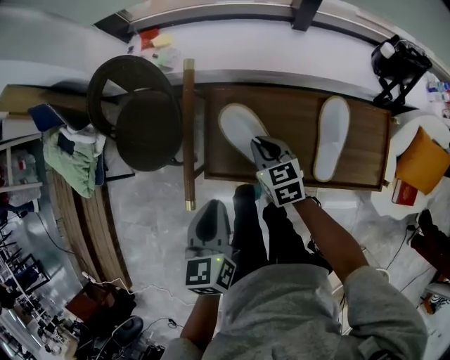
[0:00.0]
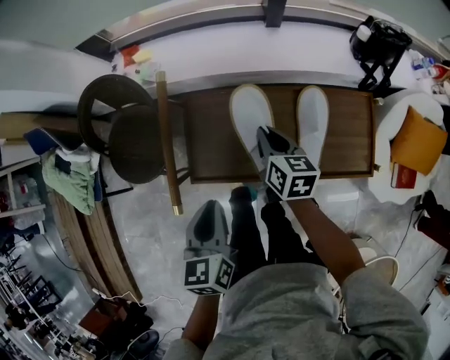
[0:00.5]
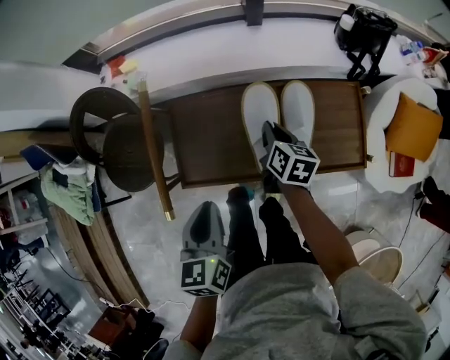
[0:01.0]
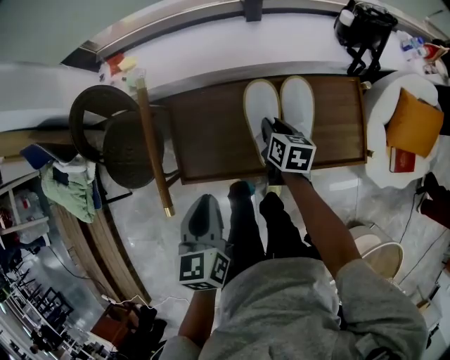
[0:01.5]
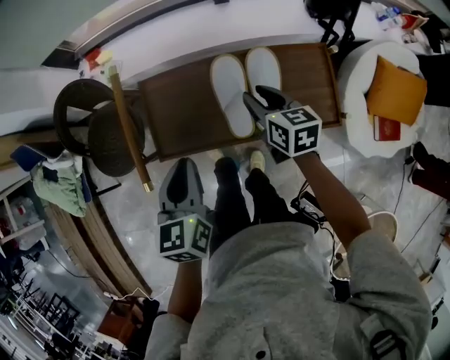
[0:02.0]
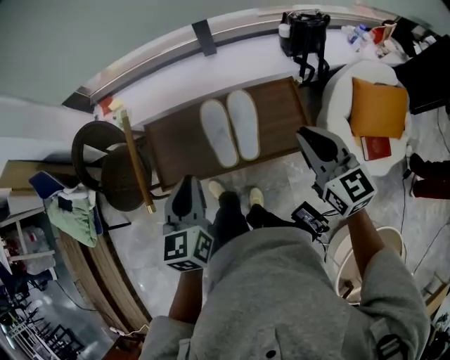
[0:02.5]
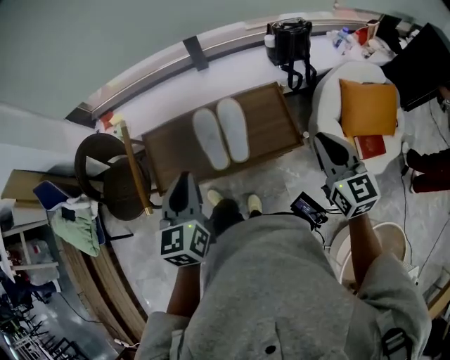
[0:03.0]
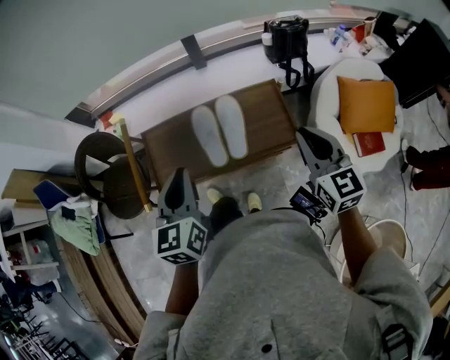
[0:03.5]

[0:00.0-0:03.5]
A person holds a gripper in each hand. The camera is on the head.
0:00.0 to 0:02.0: The right gripper heads to the right, covering approximately 20 cm, rotates roughly 20 degrees, and opens up. Meanwhile the left gripper moves to the right, about 10 cm.
0:02.0 to 0:03.5: The left gripper is displaced upward and to the right by some 15 cm. The right gripper is displaced upward, to the right and backward by roughly 35 cm, rotates some 30 degrees, and closes its fingers.

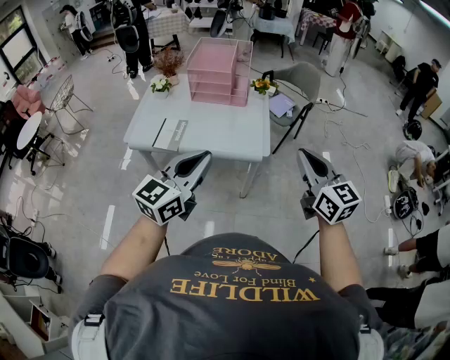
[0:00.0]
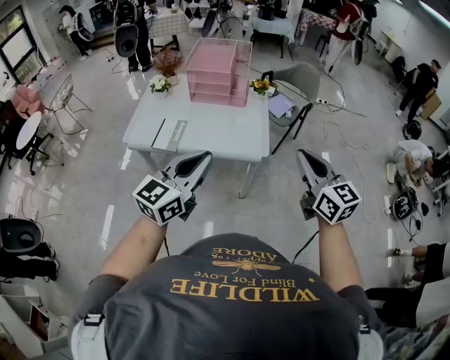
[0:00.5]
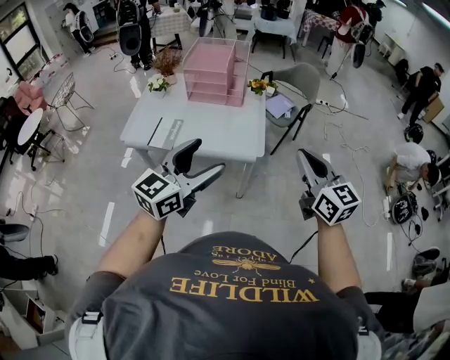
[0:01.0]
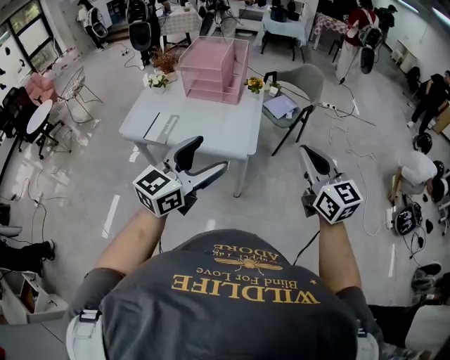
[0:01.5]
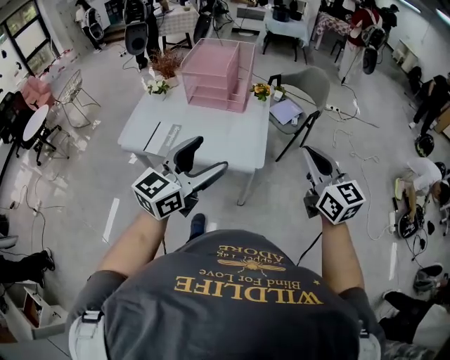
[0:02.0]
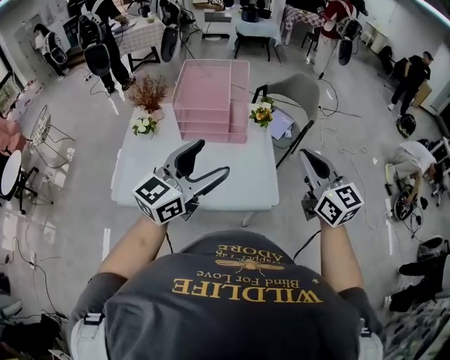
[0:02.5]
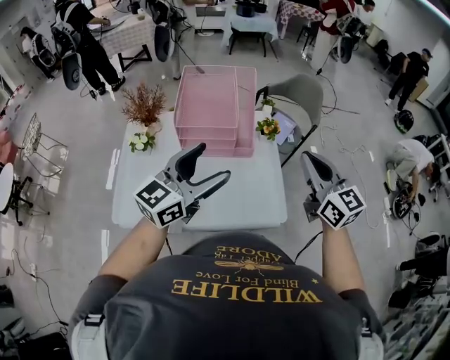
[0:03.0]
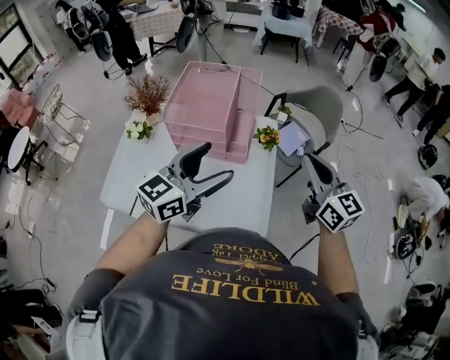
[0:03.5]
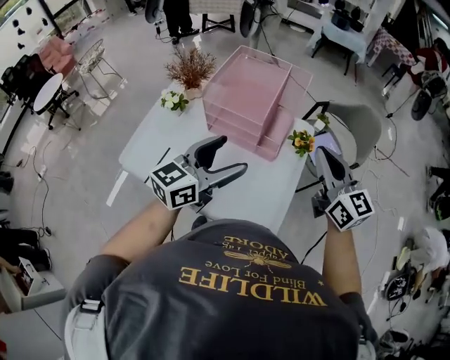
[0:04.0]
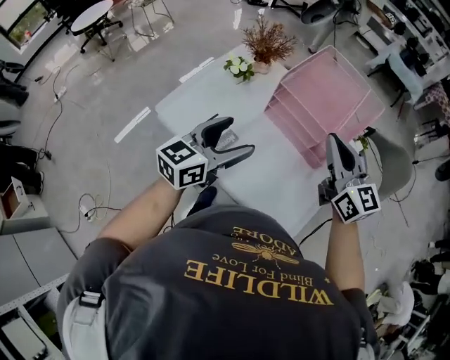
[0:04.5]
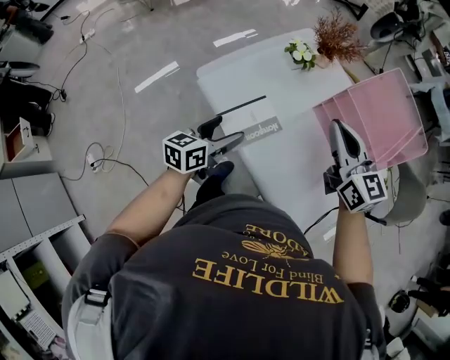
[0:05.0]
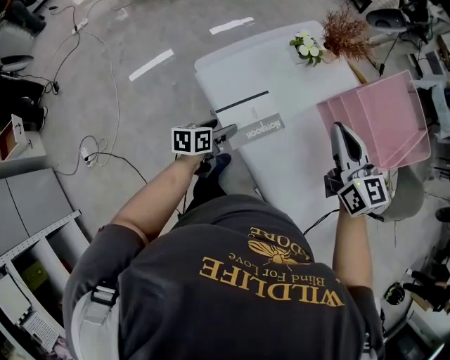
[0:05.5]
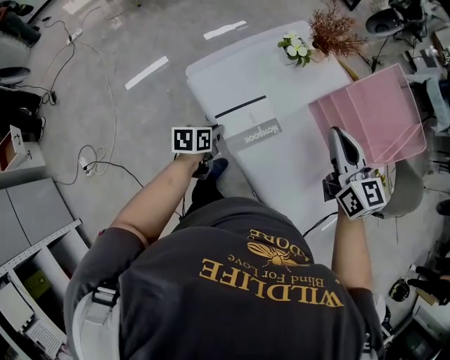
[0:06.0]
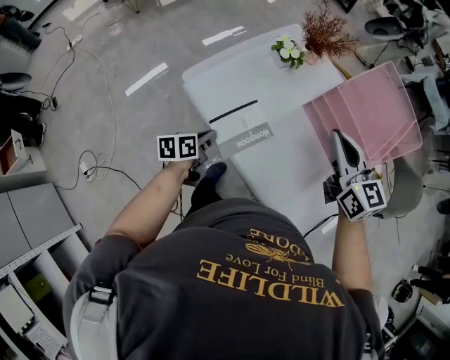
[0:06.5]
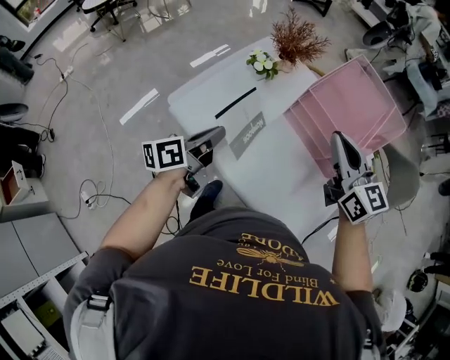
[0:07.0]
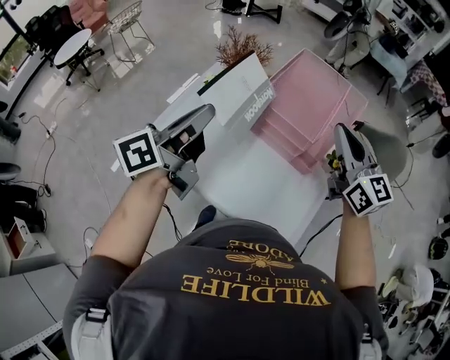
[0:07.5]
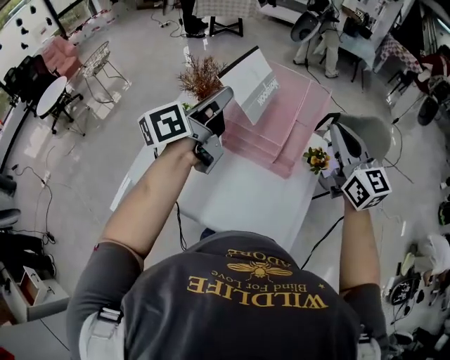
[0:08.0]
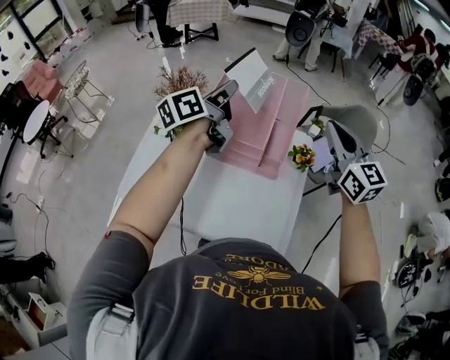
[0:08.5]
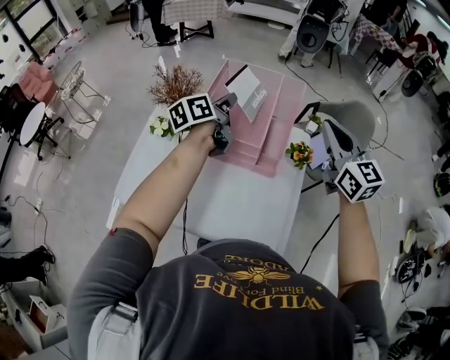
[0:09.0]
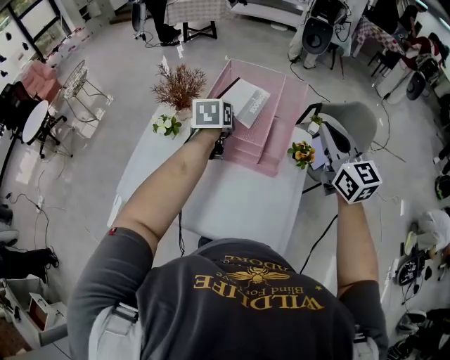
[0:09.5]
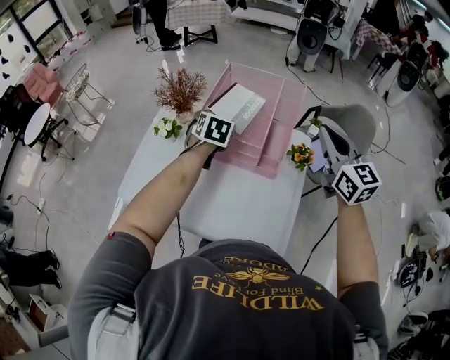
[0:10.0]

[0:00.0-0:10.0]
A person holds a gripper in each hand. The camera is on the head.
0:00.0 to 0:02.0: The two grippers go some 10 cm forward and to the right. The left gripper opens its fingers.
0:02.0 to 0:04.0: The left gripper goes about 30 cm forward. Meanwhile the right gripper is displaced forward and to the left by approximately 40 cm.
0:04.0 to 0:06.0: The right gripper ends up some 35 cm from where it was, and swivels roughly 30 degrees. The left gripper heads downward, covering about 35 cm, points its fingers some 40 degrees further downward, and closes its fingers.
0:06.0 to 0:08.0: The right gripper changes place by about 30 cm, and rotates roughly 40 degrees; the left gripper goes roughly 40 cm upward, and points its fingers some 50 degrees further upward.
0:08.0 to 0:10.0: The right gripper is displaced to the right by approximately 5 cm, while the left gripper is displaced downward and forward by some 20 cm, points its fingers roughly 50 degrees further downward, and opens up.

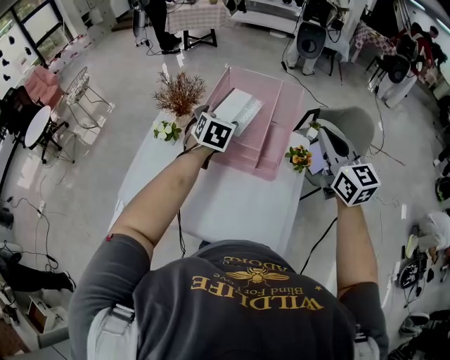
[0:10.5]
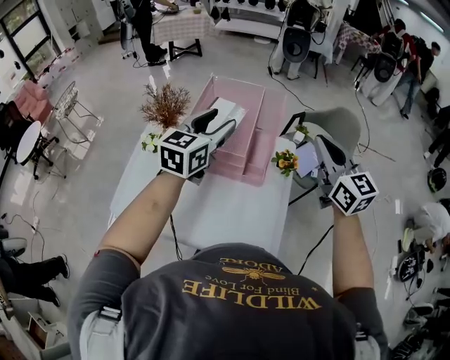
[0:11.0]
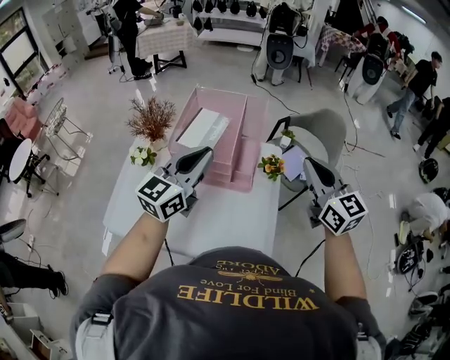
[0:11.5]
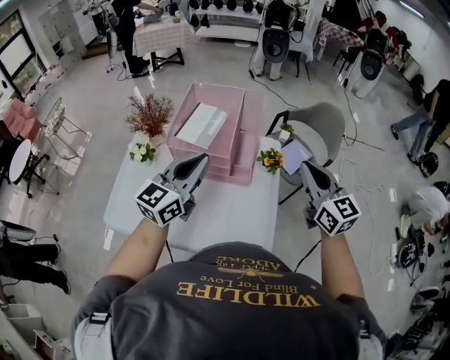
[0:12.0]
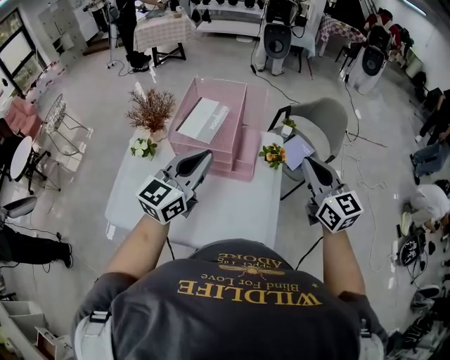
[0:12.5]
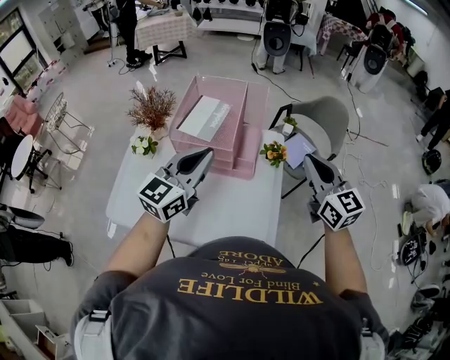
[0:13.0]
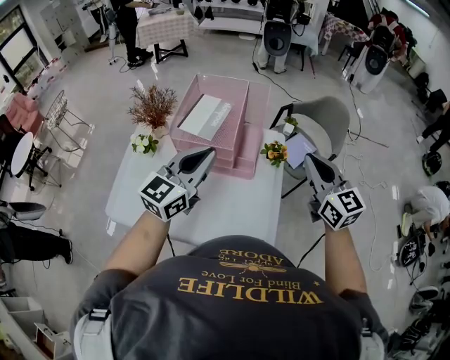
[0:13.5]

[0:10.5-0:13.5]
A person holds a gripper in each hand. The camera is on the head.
0:10.5 to 0:12.0: The right gripper moves backward and to the right, approximately 10 cm; the left gripper heads backward, upward and to the right, covering about 20 cm, tilts its fingers approximately 40 degrees upward, and closes its fingers.
0:12.0 to 0:13.5: Both grippers stay put.

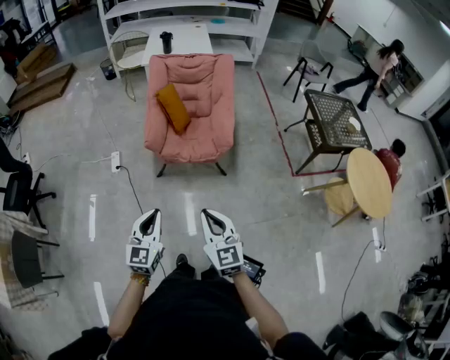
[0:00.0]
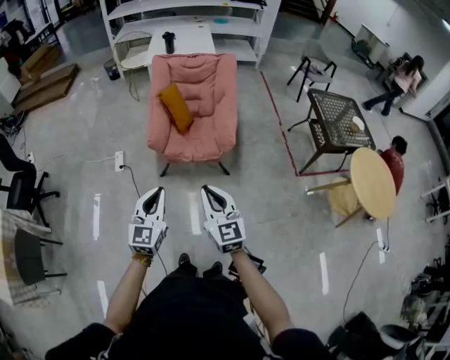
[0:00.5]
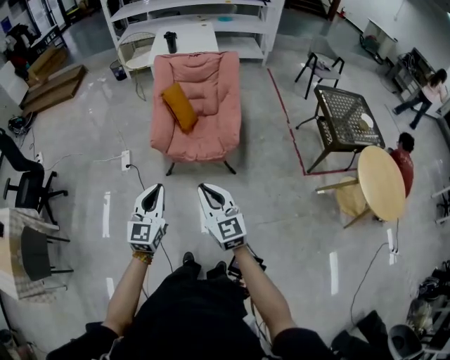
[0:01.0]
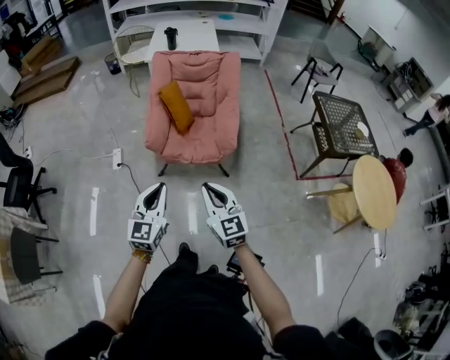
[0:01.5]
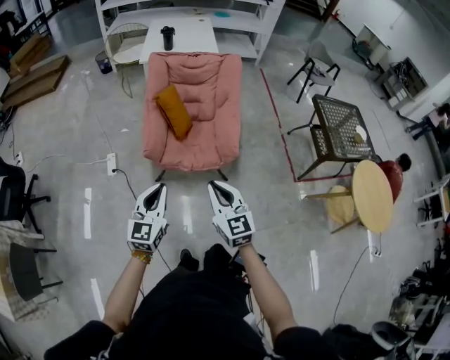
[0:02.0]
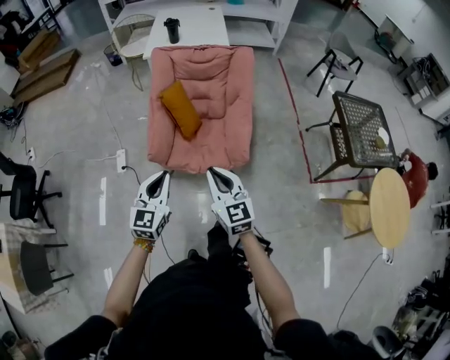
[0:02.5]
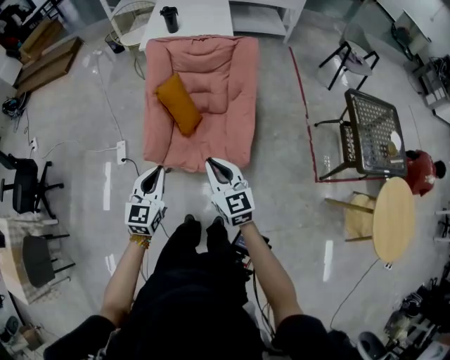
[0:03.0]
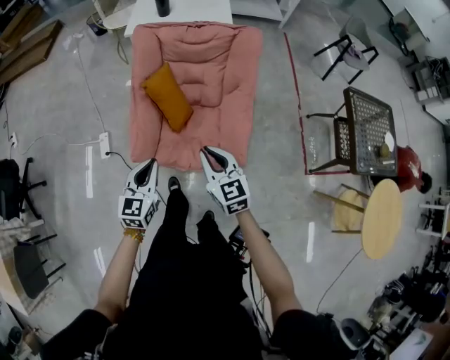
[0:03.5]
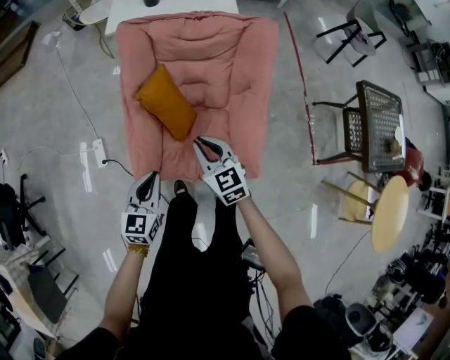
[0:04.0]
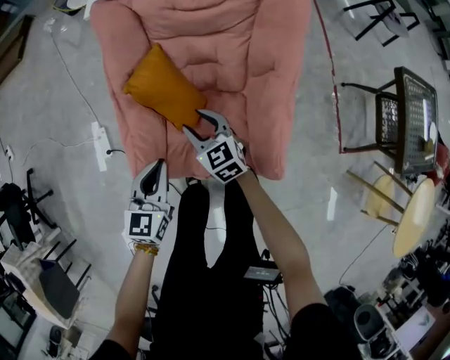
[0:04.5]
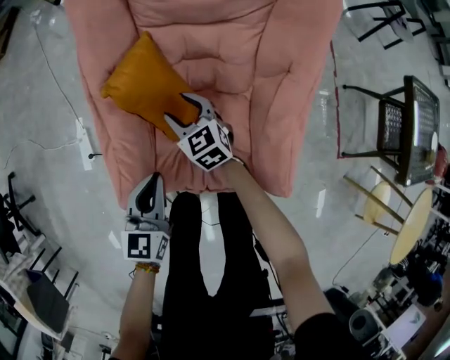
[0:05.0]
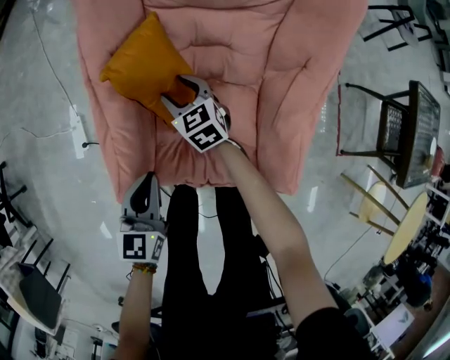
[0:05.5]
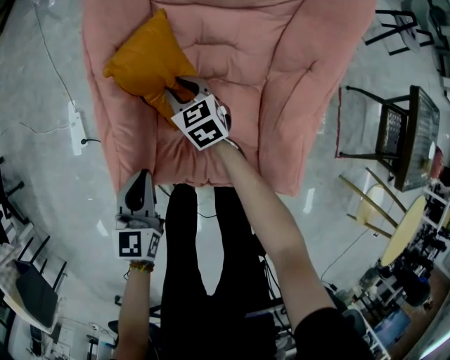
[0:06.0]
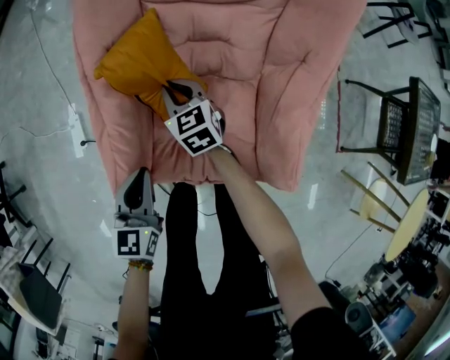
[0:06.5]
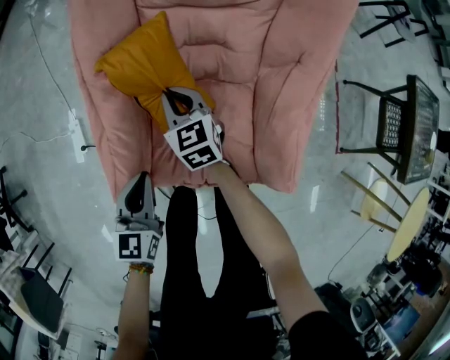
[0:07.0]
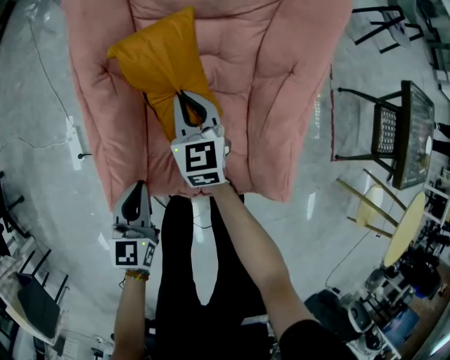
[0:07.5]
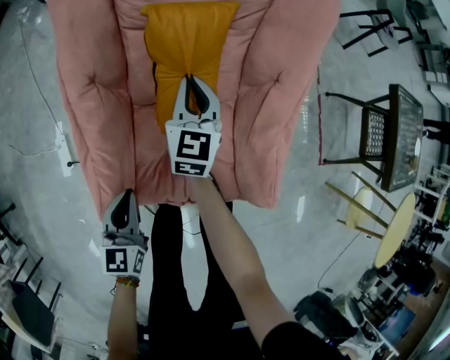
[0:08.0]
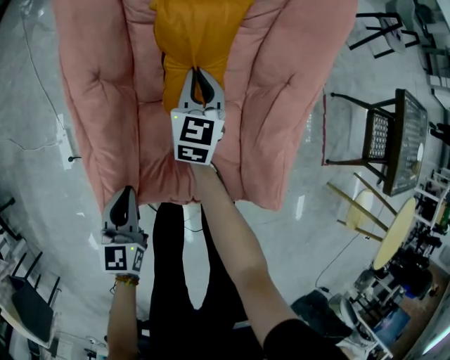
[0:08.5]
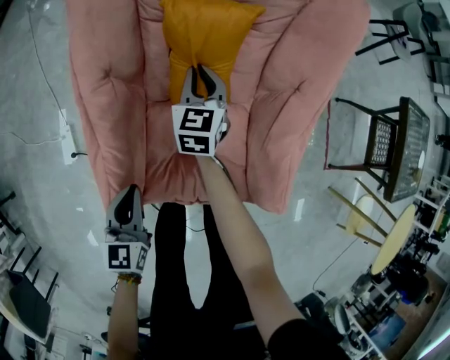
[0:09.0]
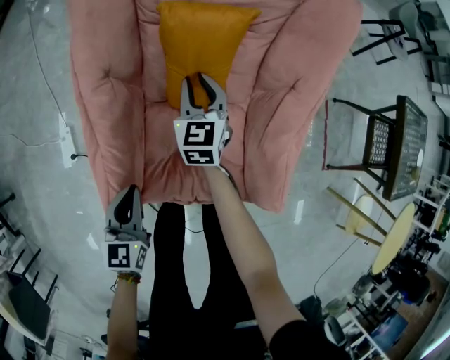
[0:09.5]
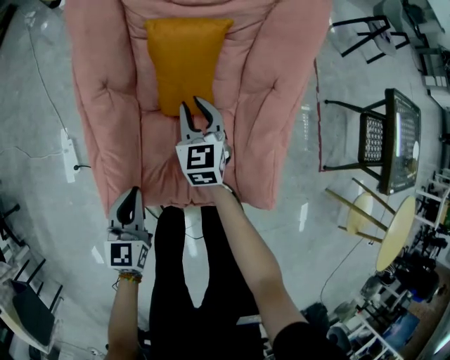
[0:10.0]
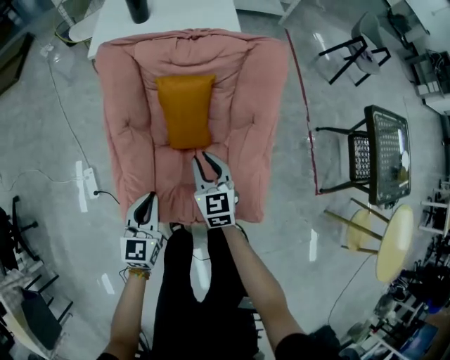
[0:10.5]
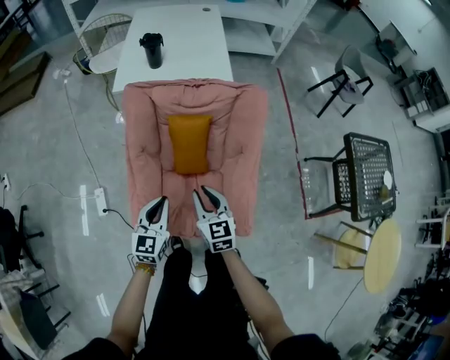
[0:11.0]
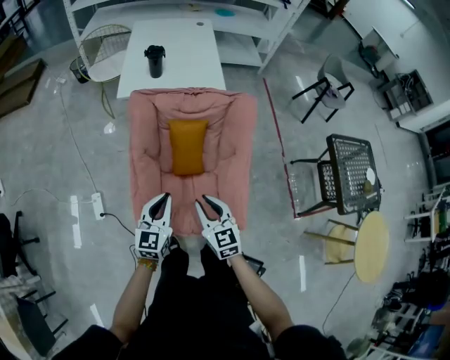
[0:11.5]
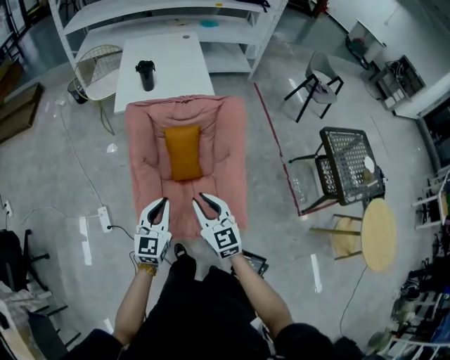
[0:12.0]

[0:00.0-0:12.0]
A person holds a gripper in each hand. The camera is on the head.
0:00.0 to 0:02.0: Both grippers travel together forward, approximately 20 cm.
0:02.0 to 0:04.0: The pair of grippers is taken forward, approximately 50 cm. The left gripper moves downward, approximately 20 cm.
0:04.0 to 0:06.0: The right gripper shifts approximately 40 cm downward and forward, and opens up. Meanwhile the left gripper goes some 20 cm downward.
0:06.0 to 0:08.0: The right gripper travels to the right and upward by some 15 cm, changes its angle by about 40 degrees, and closes.
0:10.0 to 0:12.0: The left gripper is displaced upward by about 35 cm, and turns by approximately 20 degrees. The right gripper is displaced upward and backward by roughly 40 cm.
